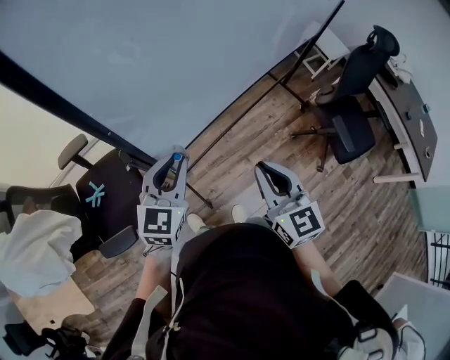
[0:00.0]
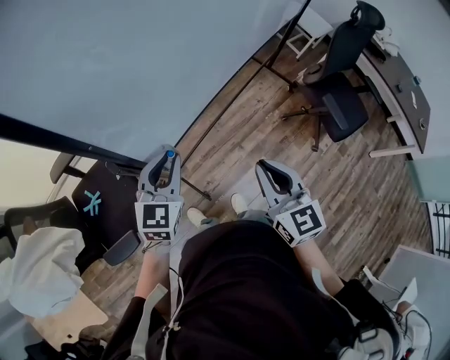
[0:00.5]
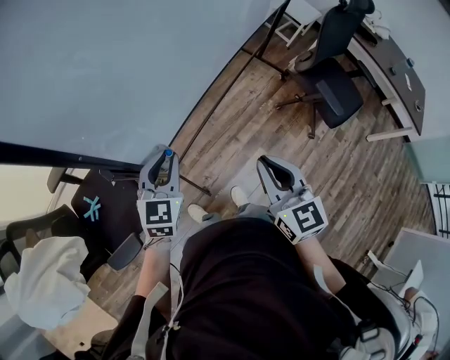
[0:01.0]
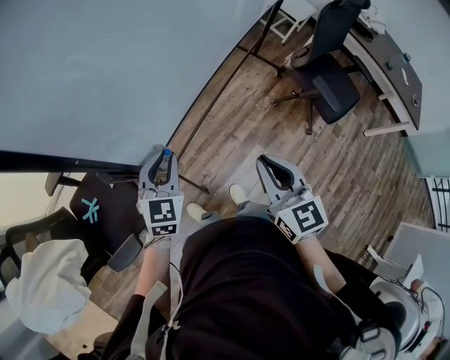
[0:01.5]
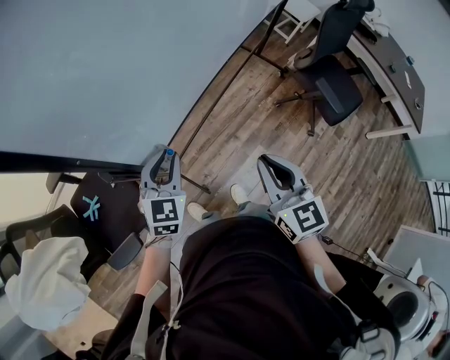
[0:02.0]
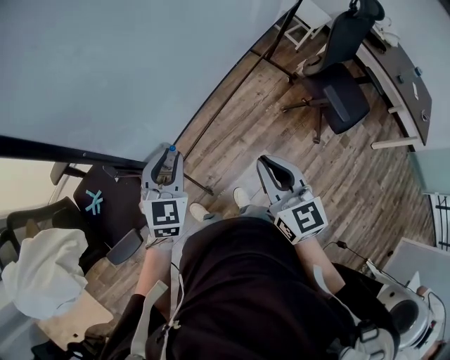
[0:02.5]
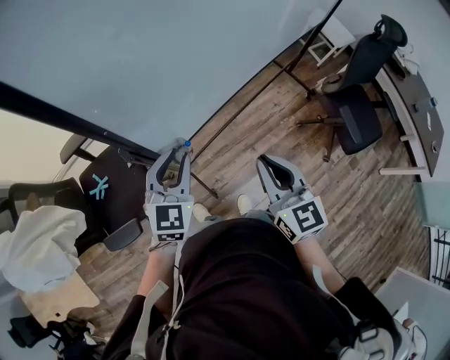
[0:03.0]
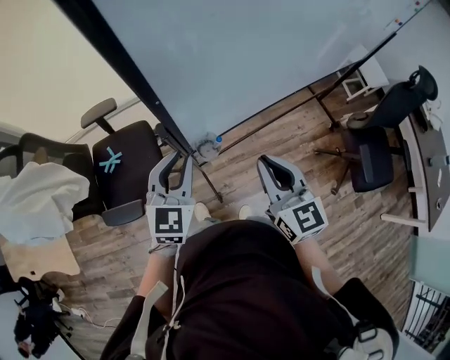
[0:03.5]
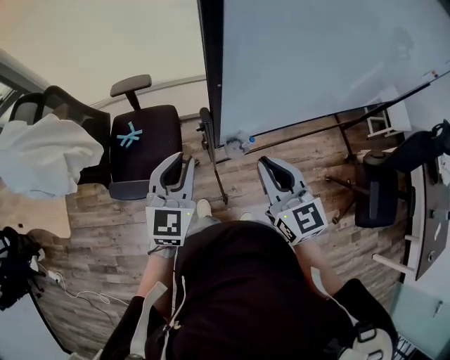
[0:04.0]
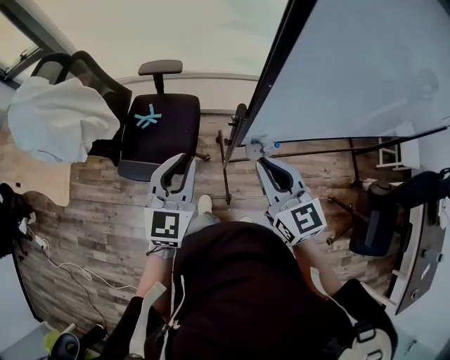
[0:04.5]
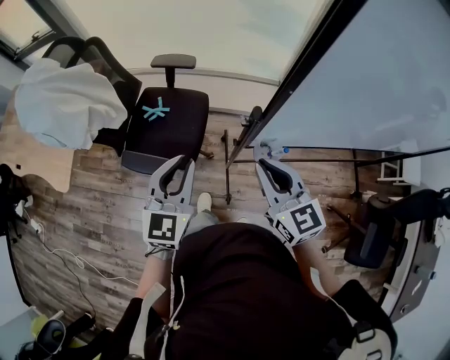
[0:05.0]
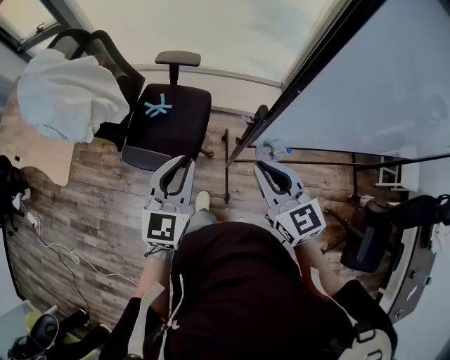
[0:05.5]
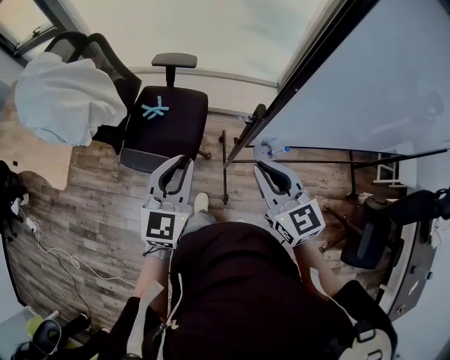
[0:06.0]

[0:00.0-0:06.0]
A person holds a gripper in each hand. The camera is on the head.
0:00.0 to 0:02.0: The left gripper travels downward by about 10 cm.
0:02.0 to 0:04.0: The right gripper shifts by roughly 20 cm, and changes its angle by about 40 degrees; the left gripper changes place by some 20 cm, and turns by roughly 30 degrees.
0:04.0 to 0:06.0: Both grippers move to the left, roughly 10 cm. The right gripper rotates some 20 degrees.

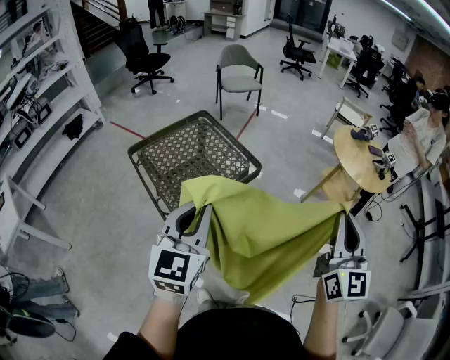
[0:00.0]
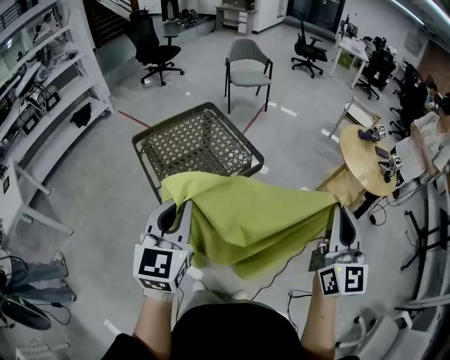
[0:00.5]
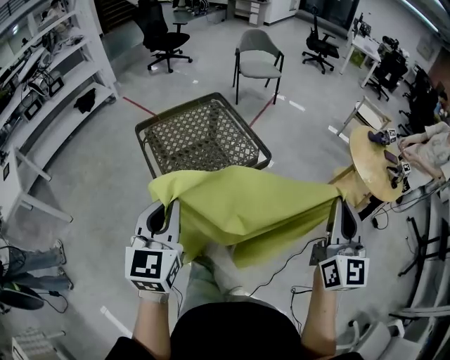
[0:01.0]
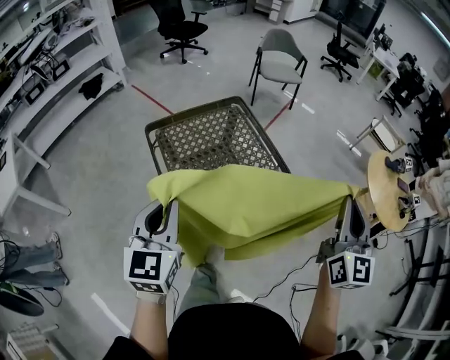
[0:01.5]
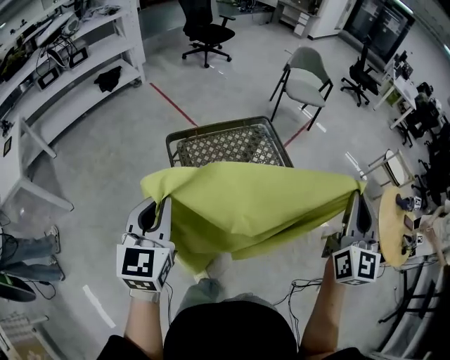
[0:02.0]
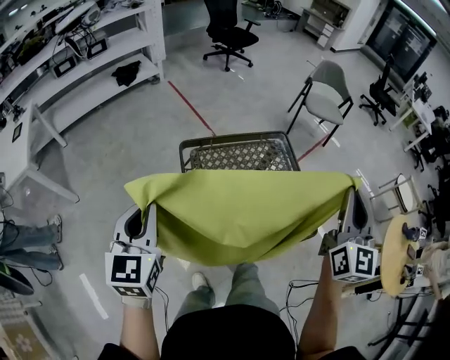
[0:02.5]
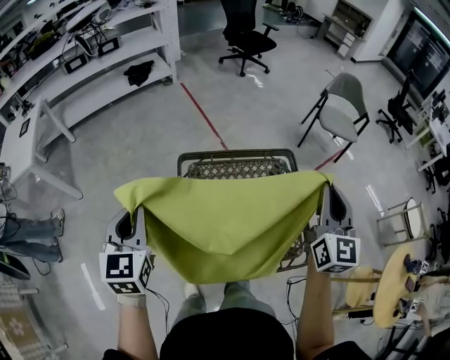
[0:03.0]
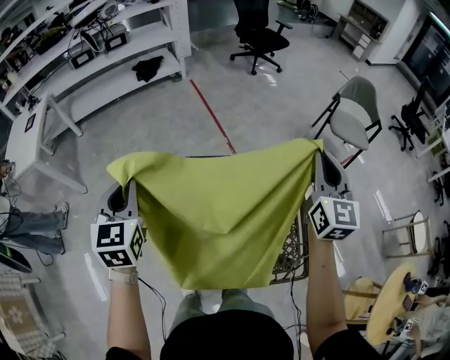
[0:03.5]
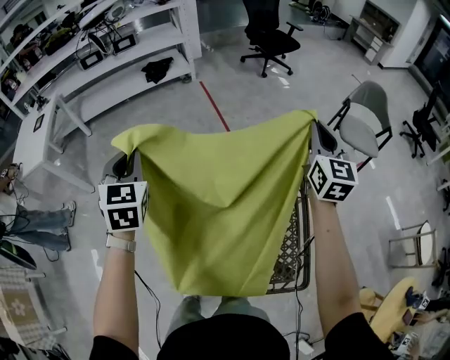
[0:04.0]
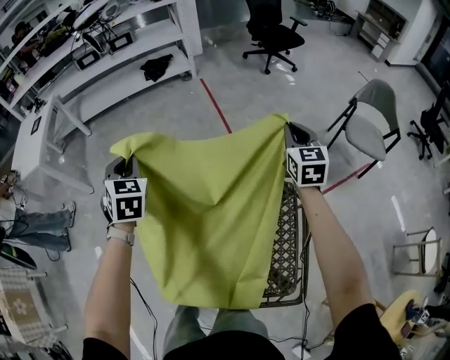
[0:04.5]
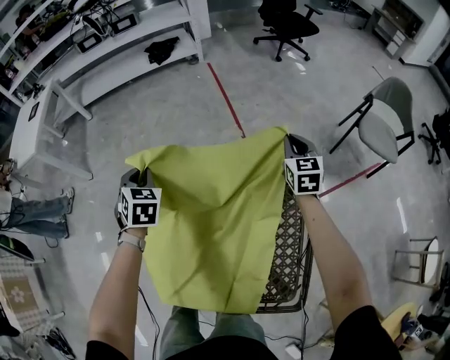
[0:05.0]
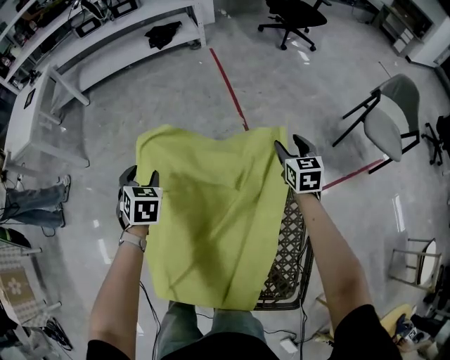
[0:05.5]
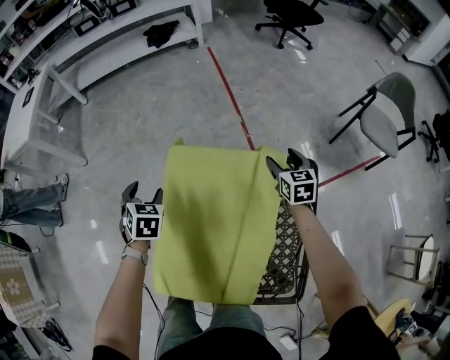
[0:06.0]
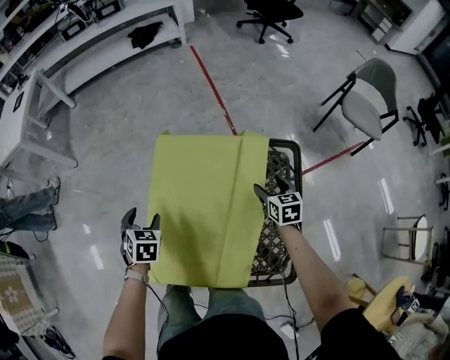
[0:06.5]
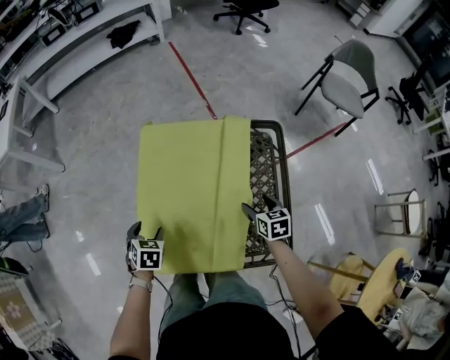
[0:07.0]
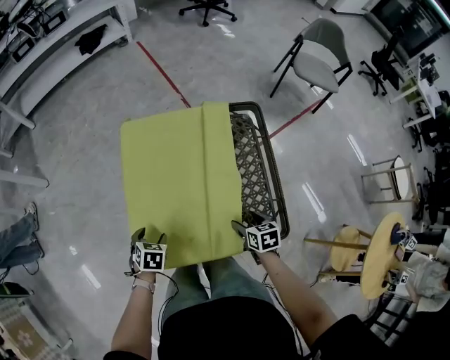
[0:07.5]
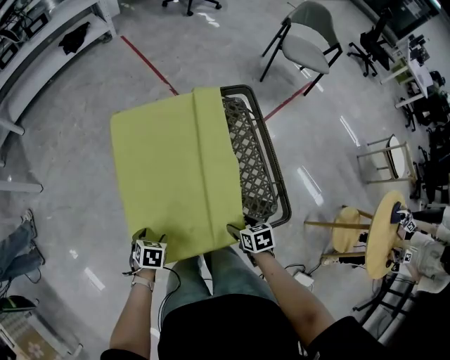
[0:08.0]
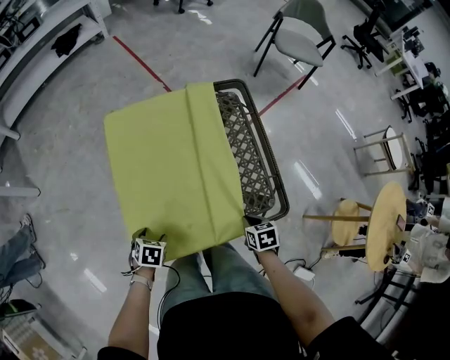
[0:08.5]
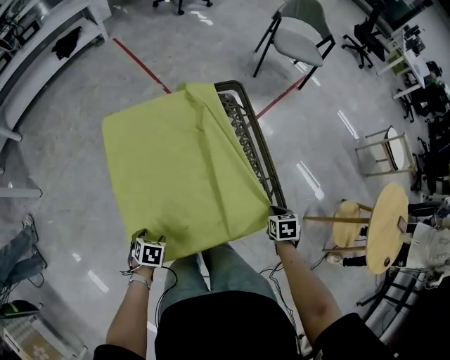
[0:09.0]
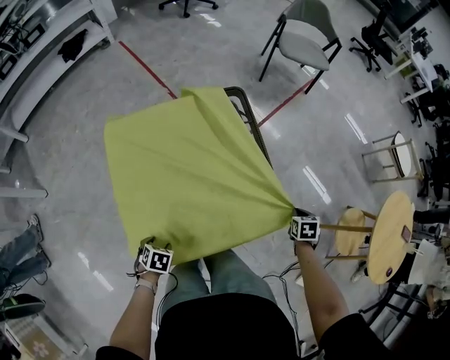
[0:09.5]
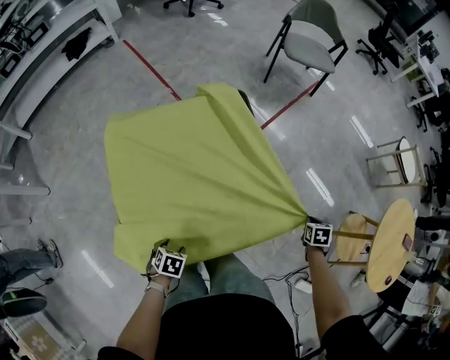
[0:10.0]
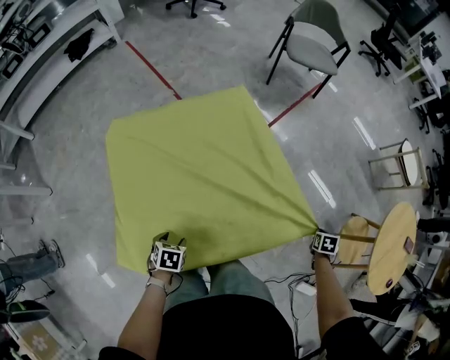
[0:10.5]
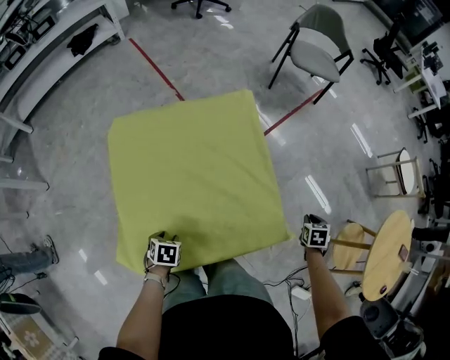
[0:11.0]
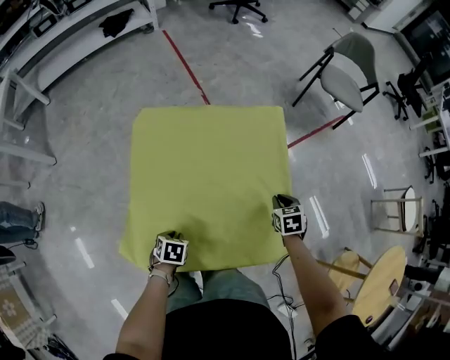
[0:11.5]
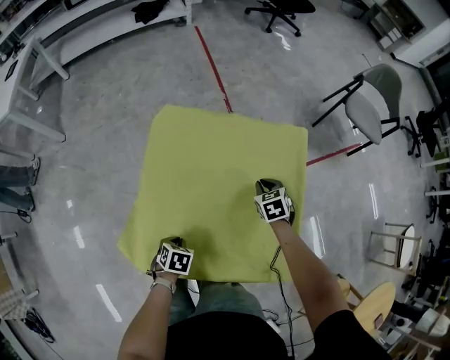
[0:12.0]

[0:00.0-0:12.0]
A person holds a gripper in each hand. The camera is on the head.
0:00.0 to 0:02.0: The right gripper goes about 40 cm forward and to the left. Meanwhile the left gripper goes roughly 35 cm to the left and forward, and rotates roughly 30 degrees.
0:02.0 to 0:04.0: The right gripper changes place by approximately 50 cm, and turns by roughly 30 degrees, while the left gripper shifts by some 30 cm, and turns by approximately 40 degrees.
0:04.0 to 0:06.0: Both grippers move downward, approximately 35 cm. The left gripper angles its fingers downward, by some 30 degrees, and opens up. The right gripper tips its fingers downward by roughly 30 degrees, and opens.
0:06.0 to 0:08.0: The right gripper changes place by about 50 cm, and swivels about 40 degrees. The left gripper moves approximately 35 cm, and turns by about 40 degrees.
0:08.0 to 0:10.0: The left gripper shifts by roughly 10 cm. The right gripper ends up approximately 35 cm from where it was, changes its angle by approximately 30 degrees, and closes its fingers.
0:10.0 to 0:12.0: The left gripper moves about 5 cm, changes its angle by some 20 degrees, and closes up; the right gripper changes place by some 50 cm, and rolls counterclockwise, seen from behind, by about 50 degrees.

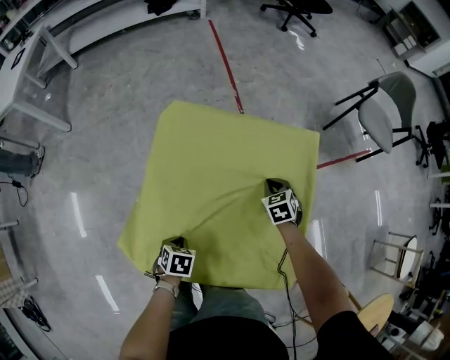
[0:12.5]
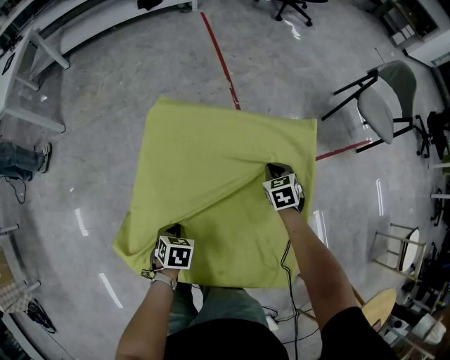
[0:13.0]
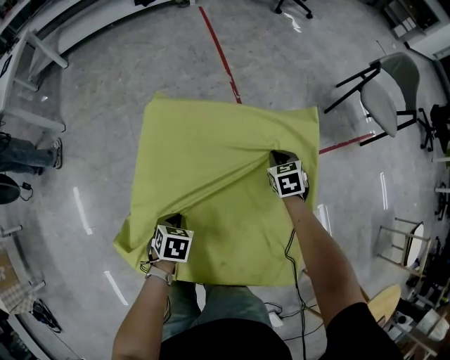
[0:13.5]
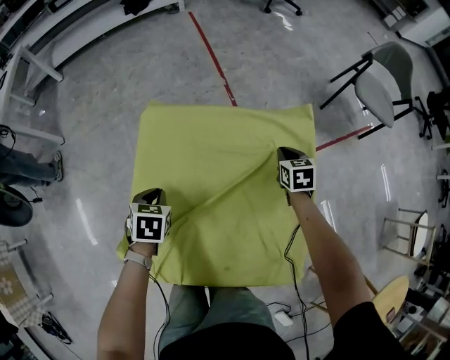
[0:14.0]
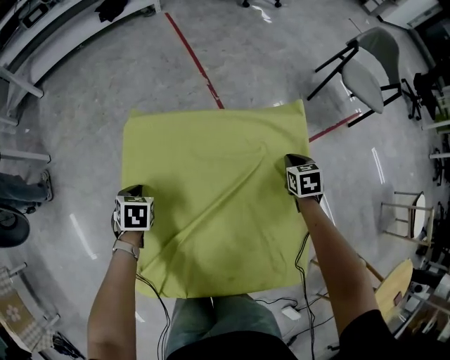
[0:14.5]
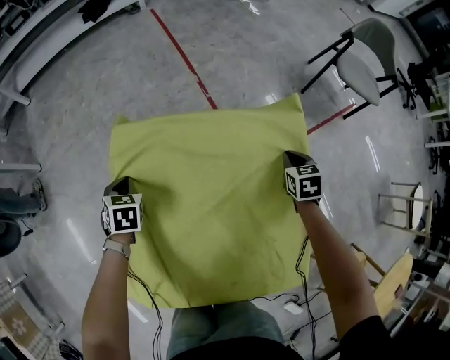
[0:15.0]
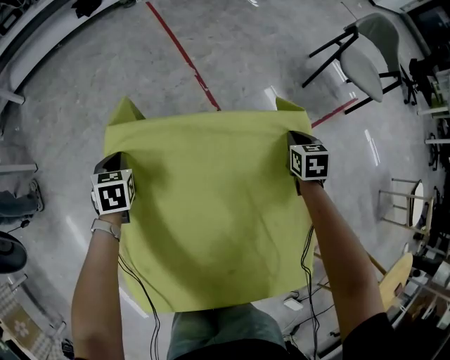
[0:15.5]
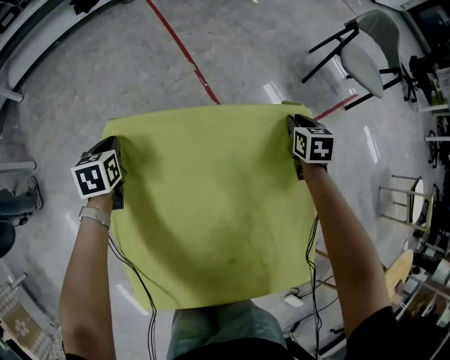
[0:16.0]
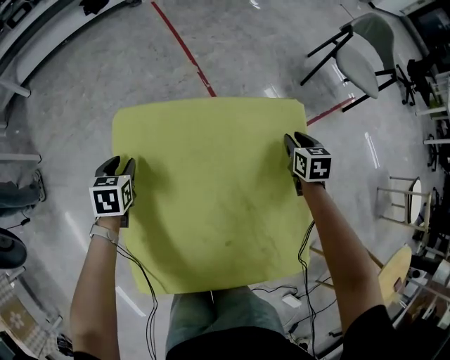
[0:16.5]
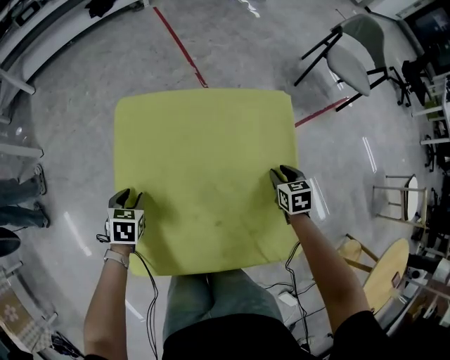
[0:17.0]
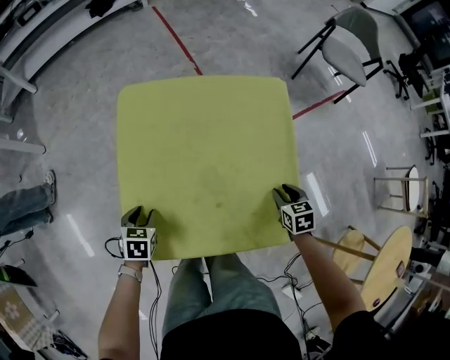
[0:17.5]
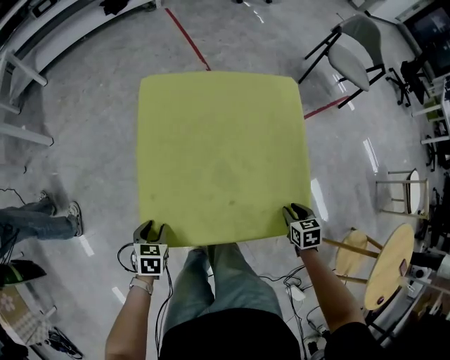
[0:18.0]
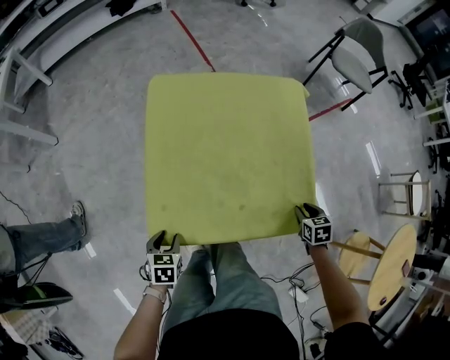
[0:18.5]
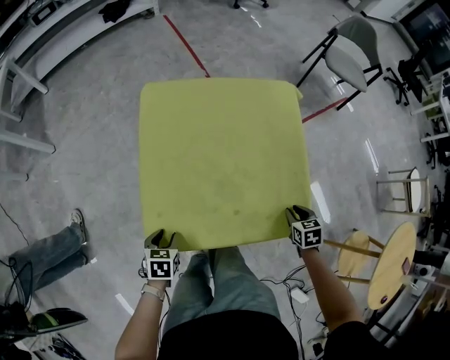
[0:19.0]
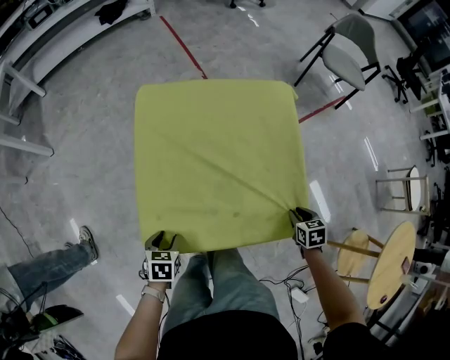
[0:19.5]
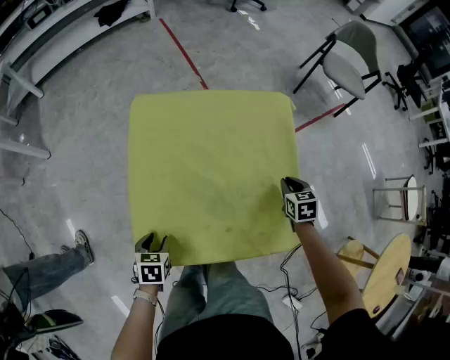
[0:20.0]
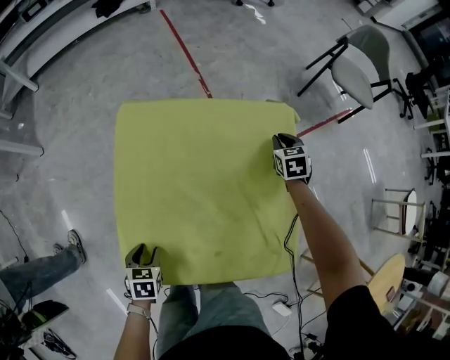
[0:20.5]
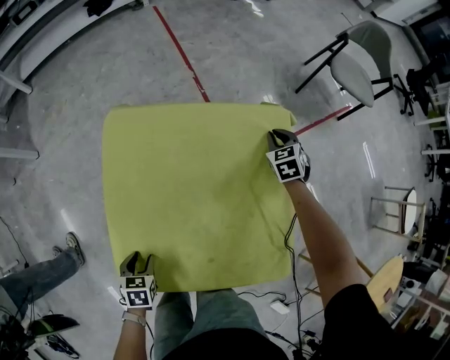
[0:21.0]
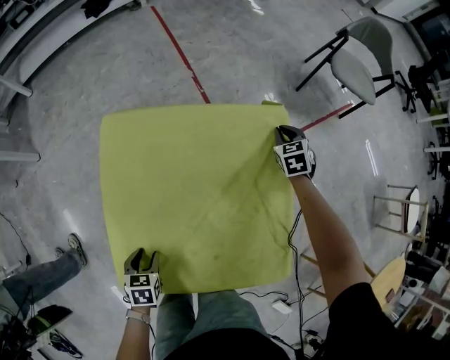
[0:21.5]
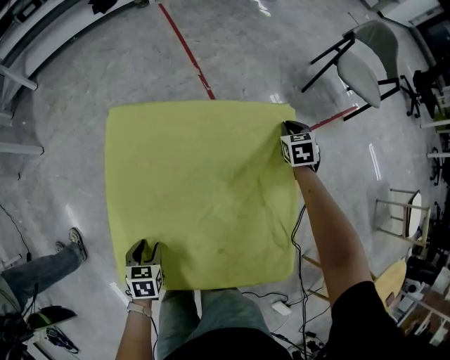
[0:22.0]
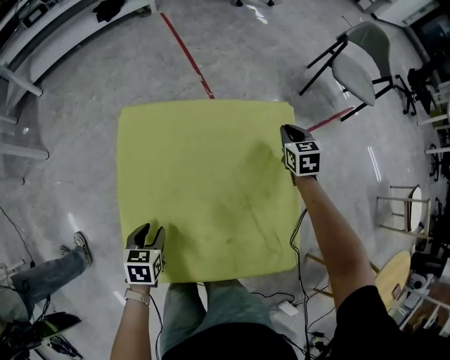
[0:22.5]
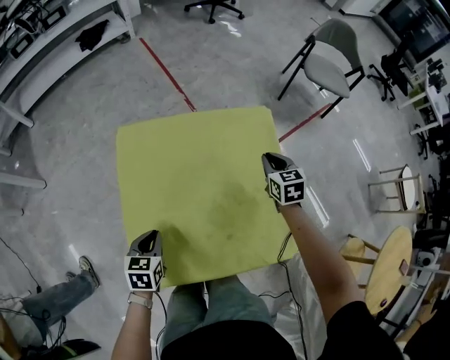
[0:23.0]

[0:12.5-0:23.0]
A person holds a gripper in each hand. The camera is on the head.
0:12.5 to 0:14.5: The left gripper goes upward and returns, about 10 cm each way. The right gripper shifts by approximately 10 cm, and changes its angle by about 20 degrees.
0:14.5 to 0:16.5: The left gripper shifts about 5 cm forward, and opens up, while the right gripper travels forward and back again, about 10 cm each way.
0:16.5 to 0:19.0: Both grippers travel together backward, approximately 40 cm.
0:19.0 to 0:21.0: The left gripper is displaced forward by some 10 cm; the right gripper shifts some 40 cm forward, and swivels approximately 30 degrees.
0:21.0 to 0:23.0: The left gripper travels upward and forward by roughly 10 cm, swivels approximately 20 degrees, and closes its fingers, while the right gripper moves backward and upward, roughly 15 cm, and rotates roughly 30 degrees.
